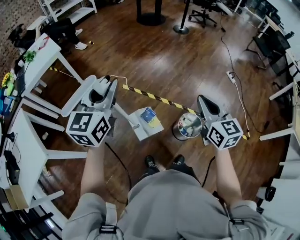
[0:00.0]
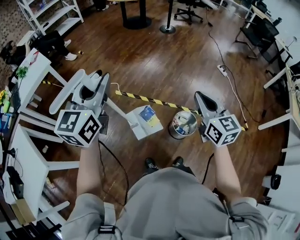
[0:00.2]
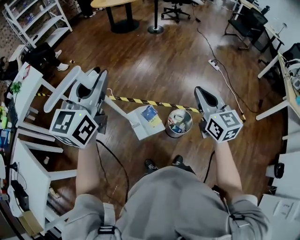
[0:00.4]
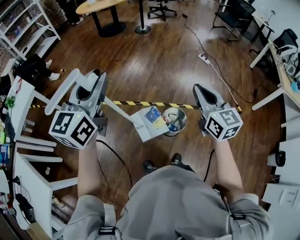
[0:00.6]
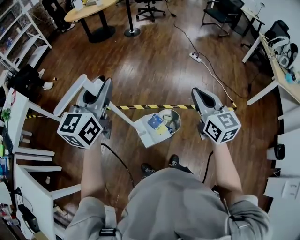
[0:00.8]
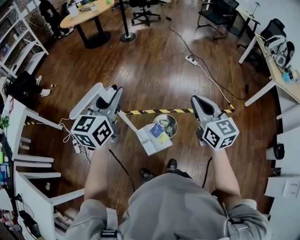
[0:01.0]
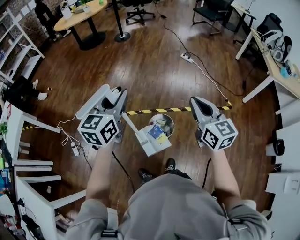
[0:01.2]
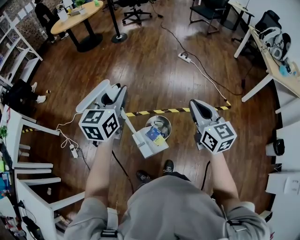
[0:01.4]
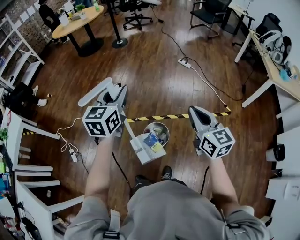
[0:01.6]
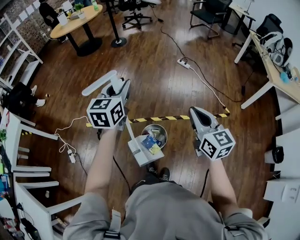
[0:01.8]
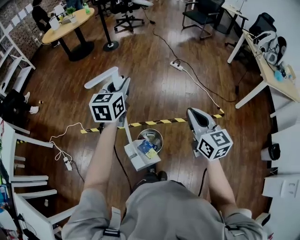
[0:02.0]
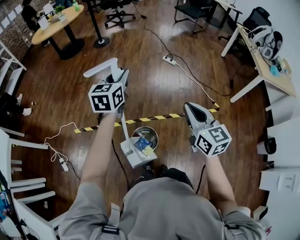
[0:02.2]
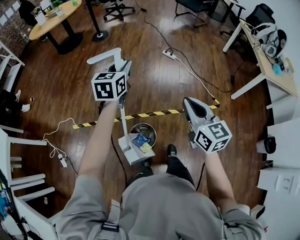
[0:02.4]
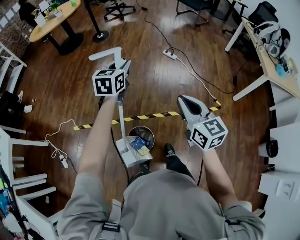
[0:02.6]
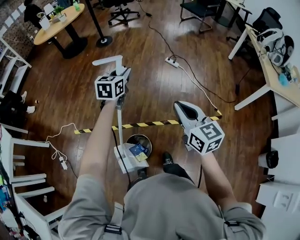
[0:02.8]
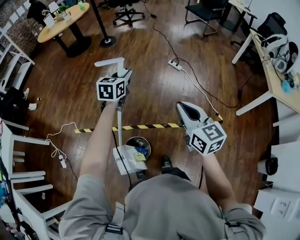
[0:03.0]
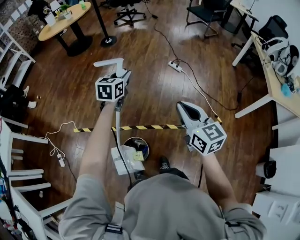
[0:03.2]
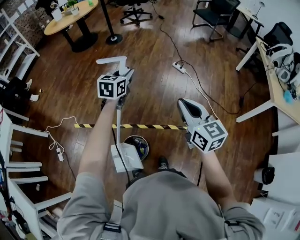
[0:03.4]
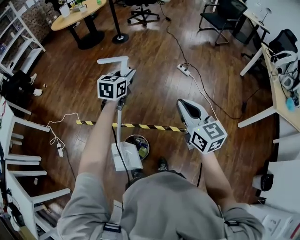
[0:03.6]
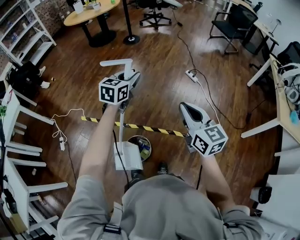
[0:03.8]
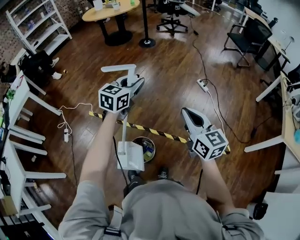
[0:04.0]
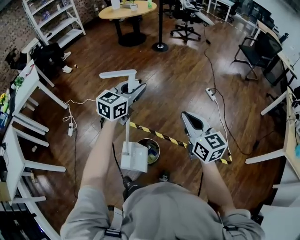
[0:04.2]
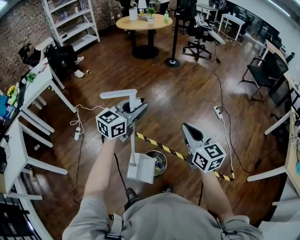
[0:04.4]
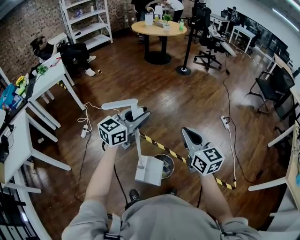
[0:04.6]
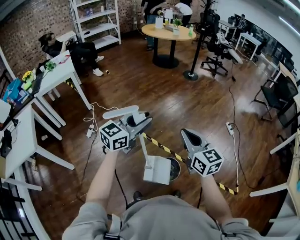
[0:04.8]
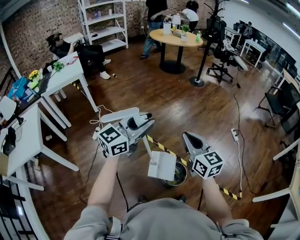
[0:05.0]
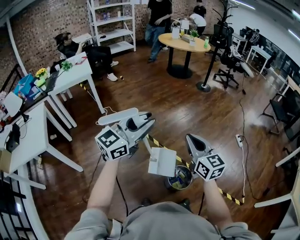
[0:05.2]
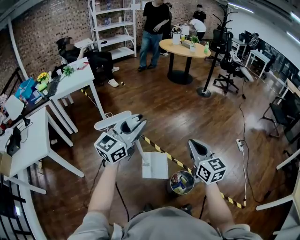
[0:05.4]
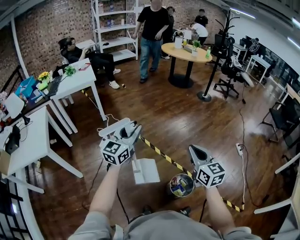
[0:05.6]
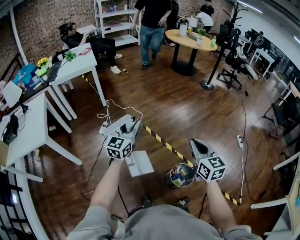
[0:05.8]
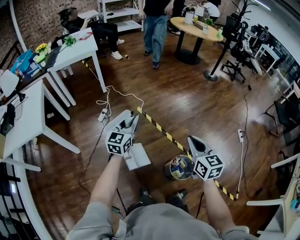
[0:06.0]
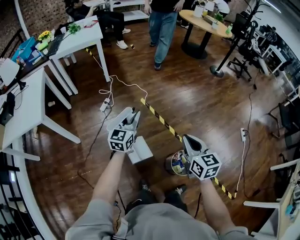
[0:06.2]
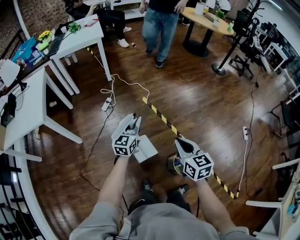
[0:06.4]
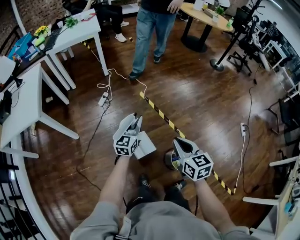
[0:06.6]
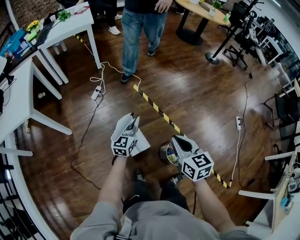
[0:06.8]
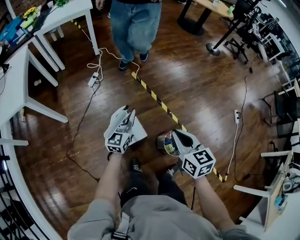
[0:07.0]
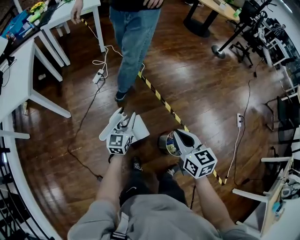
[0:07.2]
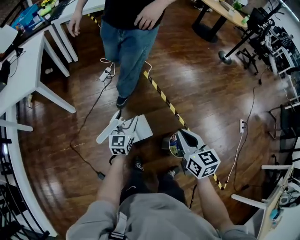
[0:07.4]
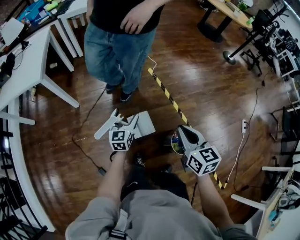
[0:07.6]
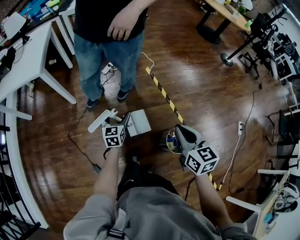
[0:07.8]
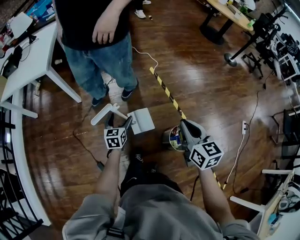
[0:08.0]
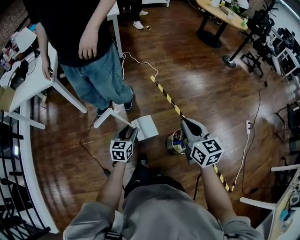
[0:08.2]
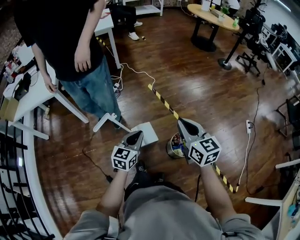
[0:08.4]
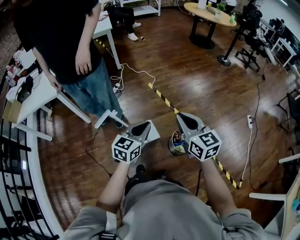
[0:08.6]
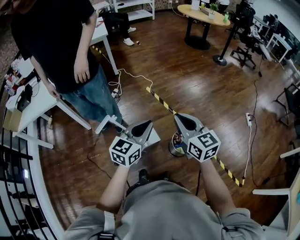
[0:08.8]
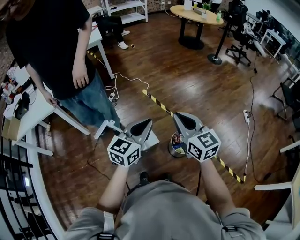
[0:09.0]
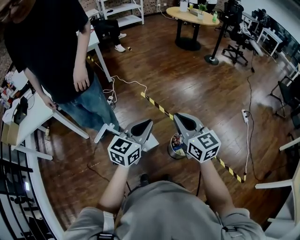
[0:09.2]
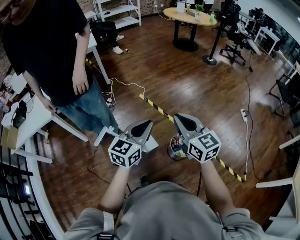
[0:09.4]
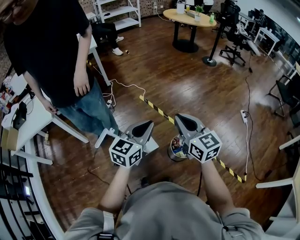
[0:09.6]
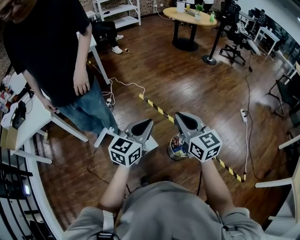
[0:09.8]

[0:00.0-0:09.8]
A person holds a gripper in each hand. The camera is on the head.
0:00.0 to 0:01.4: The right gripper shifts by approximately 30 cm, and changes its angle by approximately 20 degrees, while the left gripper moves approximately 10 cm upward and comes back, and swivels approximately 30 degrees.
0:01.4 to 0:02.8: The left gripper travels forward and to the right by approximately 40 cm, while the right gripper heads forward and to the right, covering about 25 cm.
0:02.8 to 0:04.2: The right gripper shifts about 10 cm to the left, and turns by about 20 degrees. Meanwhile the left gripper heads backward, to the left and upward, covering some 20 cm.
0:04.2 to 0:05.6: The two grippers go about 40 cm to the left. The left gripper turns by roughly 30 degrees.
0:05.6 to 0:07.0: The right gripper moves downward and to the left, about 20 cm, and turns by roughly 20 degrees; the left gripper shifts about 30 cm downward.
0:07.0 to 0:08.4: The left gripper goes about 25 cm backward, and opens and closes again. The right gripper goes approximately 15 cm backward and upward.
0:08.4 to 0:09.8: The left gripper is displaced upward and to the right by roughly 20 cm, and rotates roughly 20 degrees; the right gripper is displaced upward by roughly 5 cm.

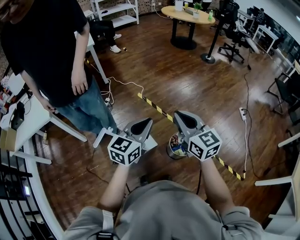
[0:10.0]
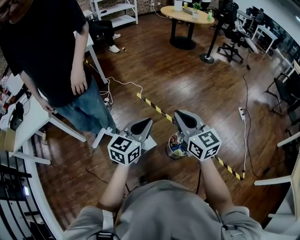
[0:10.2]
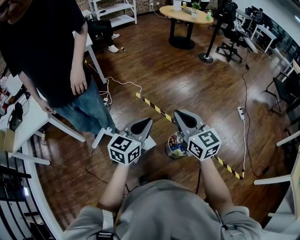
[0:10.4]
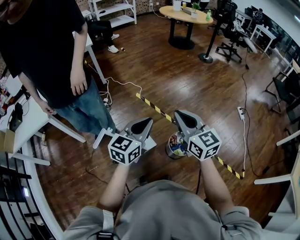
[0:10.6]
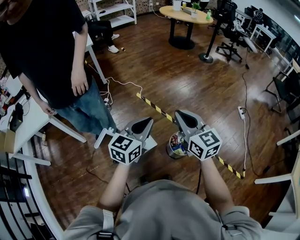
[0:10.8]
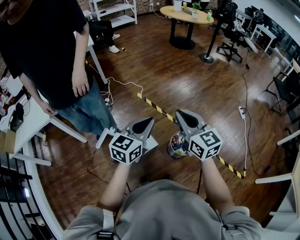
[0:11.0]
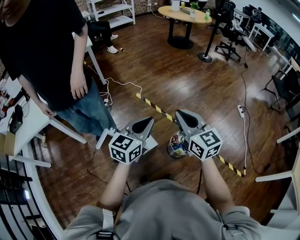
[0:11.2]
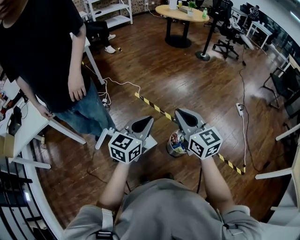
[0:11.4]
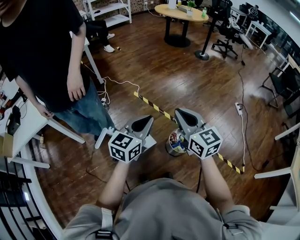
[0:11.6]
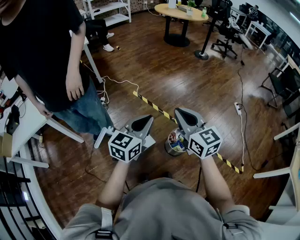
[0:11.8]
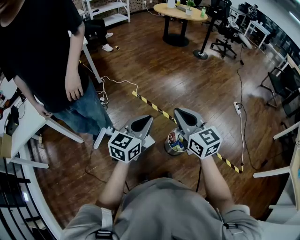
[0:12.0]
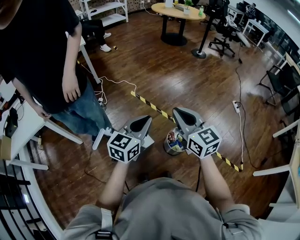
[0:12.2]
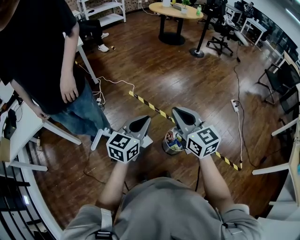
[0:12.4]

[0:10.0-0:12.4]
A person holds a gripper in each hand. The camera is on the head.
0:10.0 to 0:12.4: The grippers make only small movements.

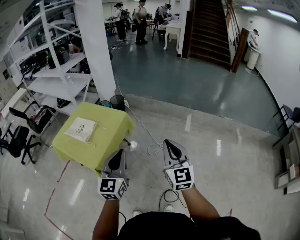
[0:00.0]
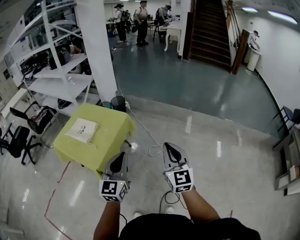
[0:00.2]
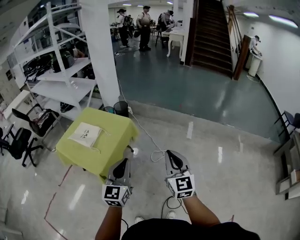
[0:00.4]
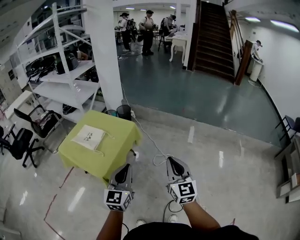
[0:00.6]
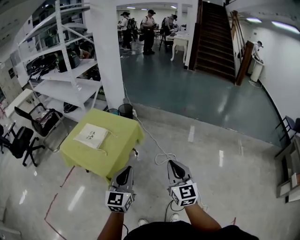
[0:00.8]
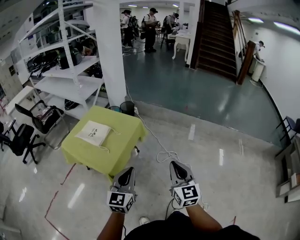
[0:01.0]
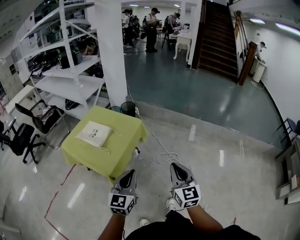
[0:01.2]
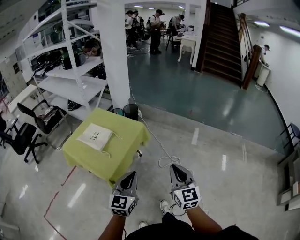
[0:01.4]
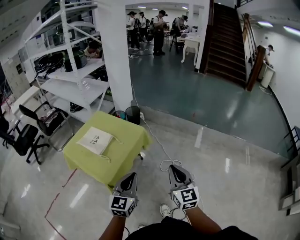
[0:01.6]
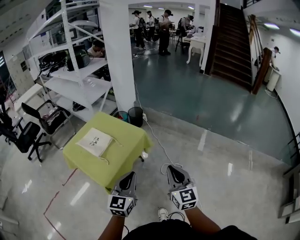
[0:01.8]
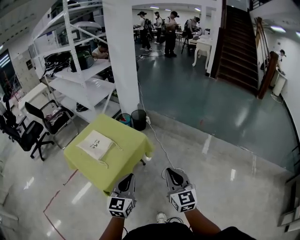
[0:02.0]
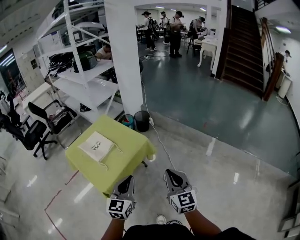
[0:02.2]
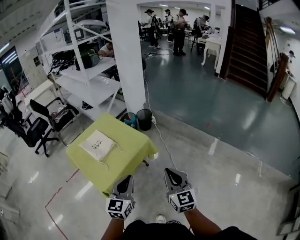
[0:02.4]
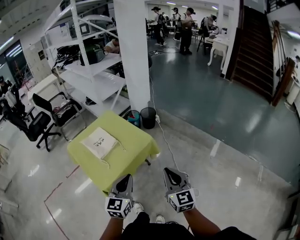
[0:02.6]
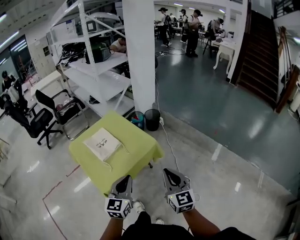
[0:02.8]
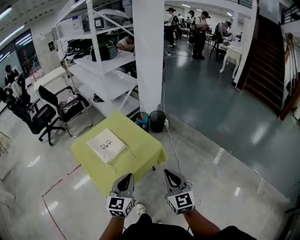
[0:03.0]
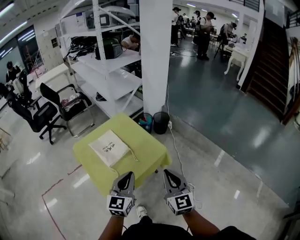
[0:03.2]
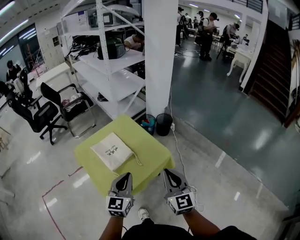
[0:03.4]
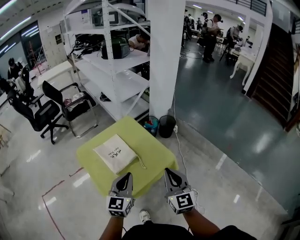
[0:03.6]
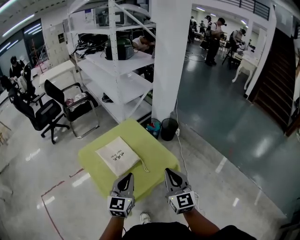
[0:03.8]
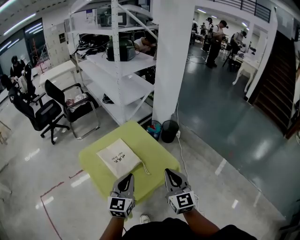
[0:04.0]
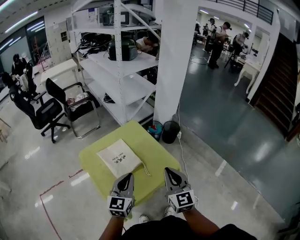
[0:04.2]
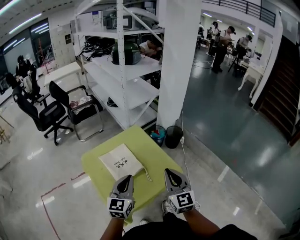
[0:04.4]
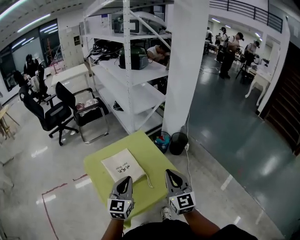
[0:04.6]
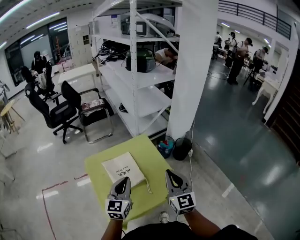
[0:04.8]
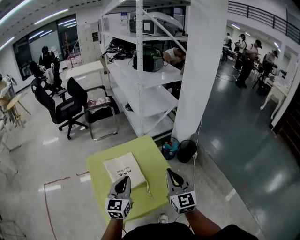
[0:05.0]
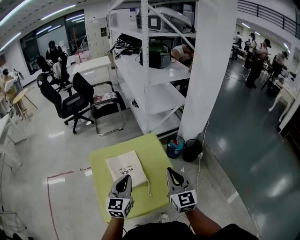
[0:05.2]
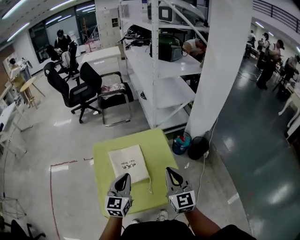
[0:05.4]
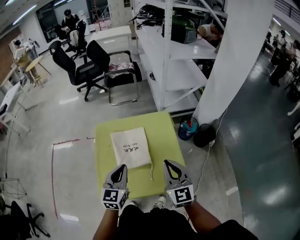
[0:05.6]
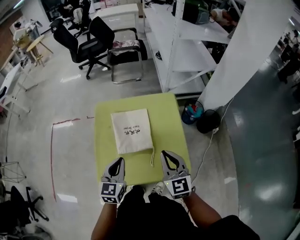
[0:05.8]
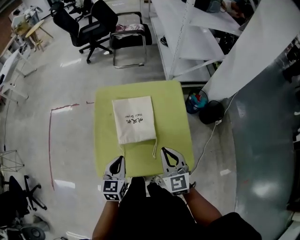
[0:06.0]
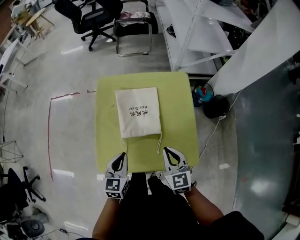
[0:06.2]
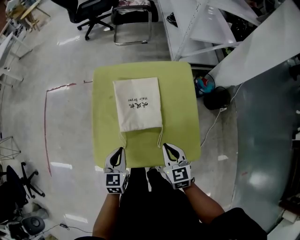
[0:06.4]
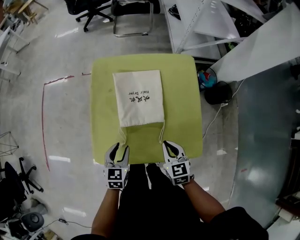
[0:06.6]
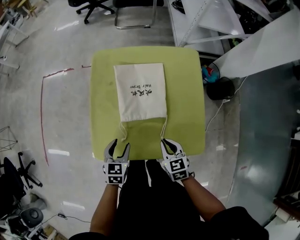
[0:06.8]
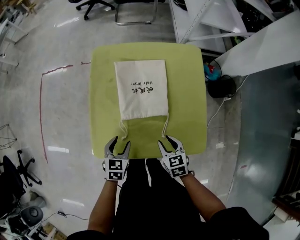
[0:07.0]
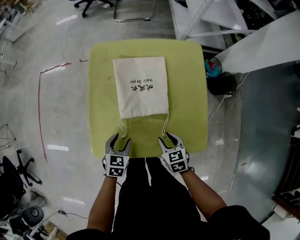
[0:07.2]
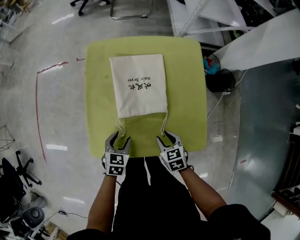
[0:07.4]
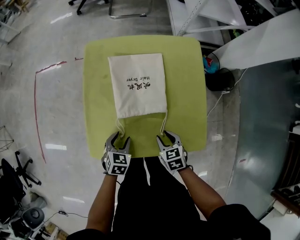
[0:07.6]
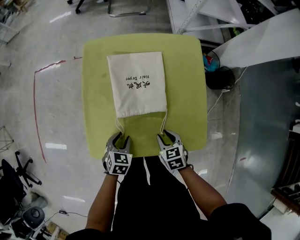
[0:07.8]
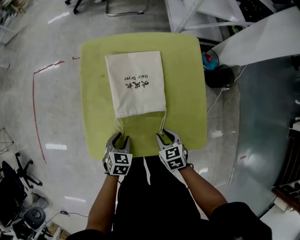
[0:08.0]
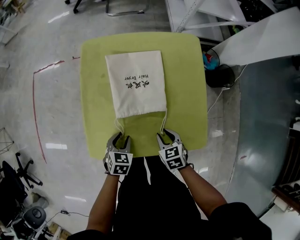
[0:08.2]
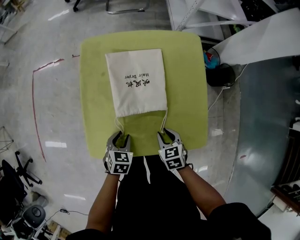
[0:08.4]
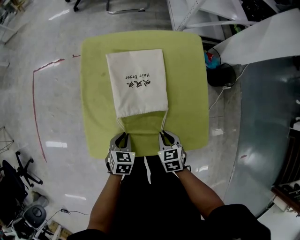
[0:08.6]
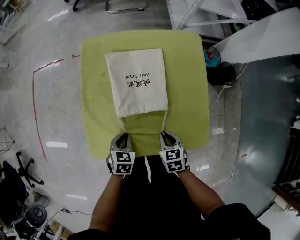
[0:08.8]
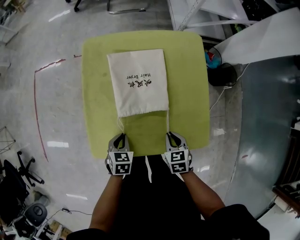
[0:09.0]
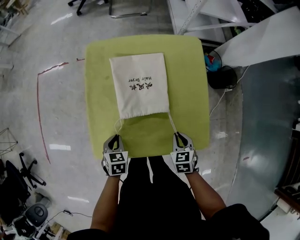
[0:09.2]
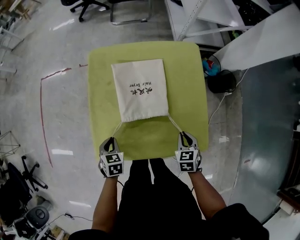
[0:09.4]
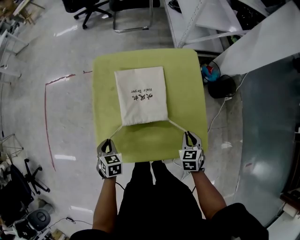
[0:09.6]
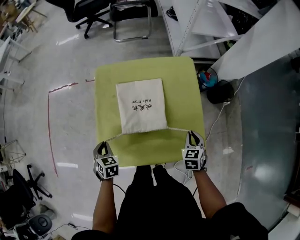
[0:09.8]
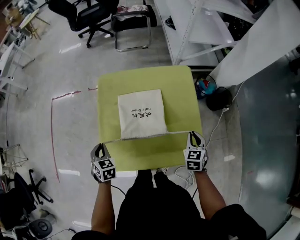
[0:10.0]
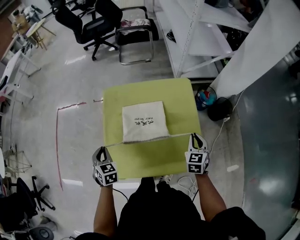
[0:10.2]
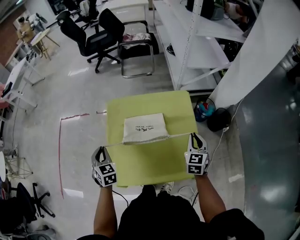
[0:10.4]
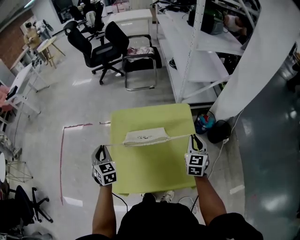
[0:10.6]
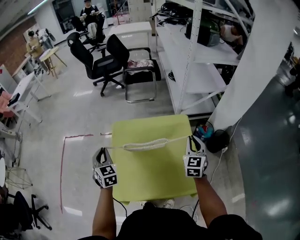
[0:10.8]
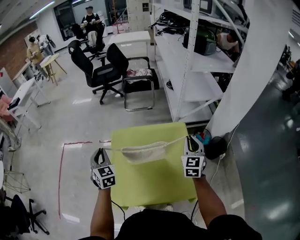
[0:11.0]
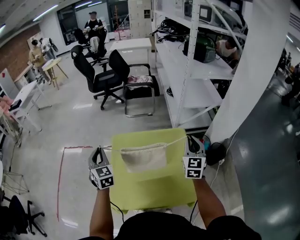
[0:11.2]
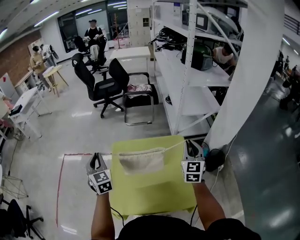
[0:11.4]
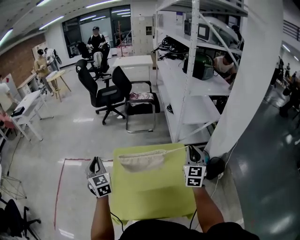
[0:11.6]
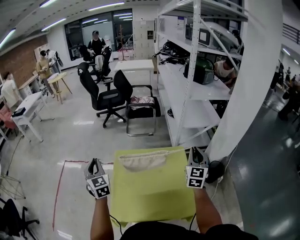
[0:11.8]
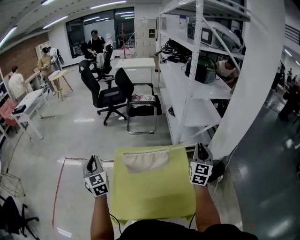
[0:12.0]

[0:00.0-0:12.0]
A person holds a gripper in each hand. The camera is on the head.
0:00.0 to 0:01.6: The grippers both shift to the left and downward by roughly 10 cm.
0:01.6 to 0:03.0: Both grippers move forward, about 20 cm. The right gripper swivels some 20 degrees.
0:03.0 to 0:04.4: The grippers both shift forward and to the left by about 20 cm.
0:04.4 to 0:06.0: Both grippers move downward, approximately 15 cm. The left gripper rotates about 40 degrees, while the right gripper changes its angle by roughly 40 degrees.
0:06.0 to 0:07.6: Both grippers move downward, approximately 25 cm. The left gripper changes its angle by some 30 degrees, and opens its fingers, while the right gripper points its fingers approximately 40 degrees further downward, and opens its fingers.
0:07.6 to 0:09.0: The left gripper closes up, while the right gripper closes.
0:09.0 to 0:10.4: The right gripper heads upward, forward and to the right, covering roughly 30 cm, and changes its angle by some 30 degrees. Meanwhile the left gripper shifts approximately 25 cm upward, to the left and forward, and turns by about 40 degrees.
0:10.4 to 0:12.0: Both grippers travel together upward, about 20 cm. The left gripper turns by roughly 30 degrees, while the right gripper swivels some 30 degrees.
